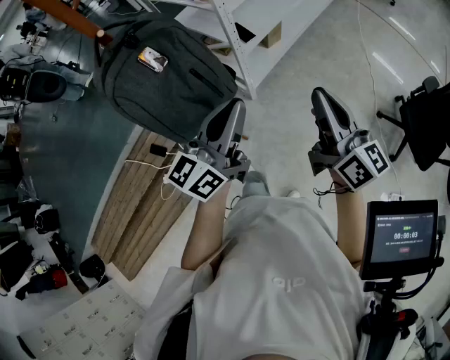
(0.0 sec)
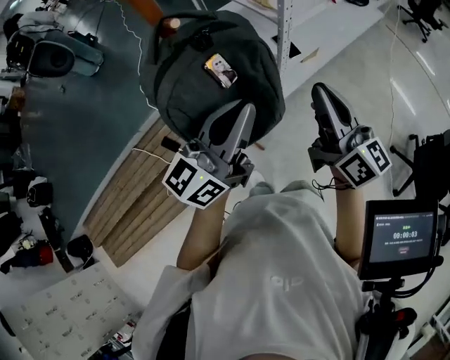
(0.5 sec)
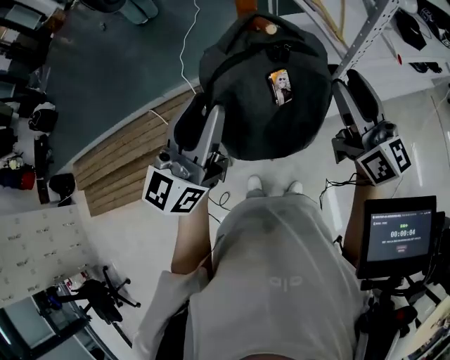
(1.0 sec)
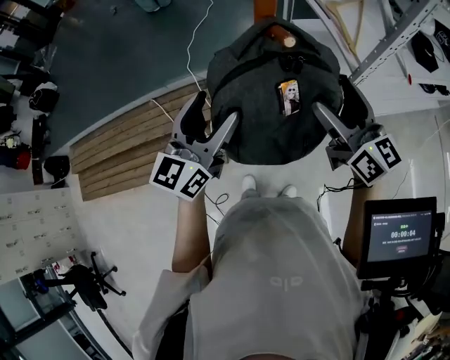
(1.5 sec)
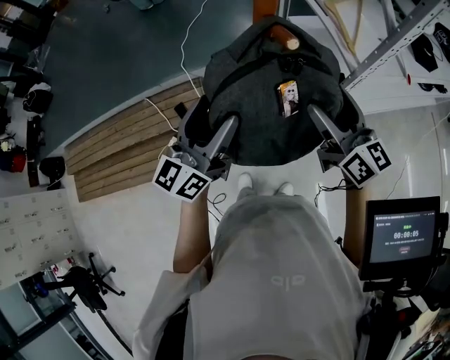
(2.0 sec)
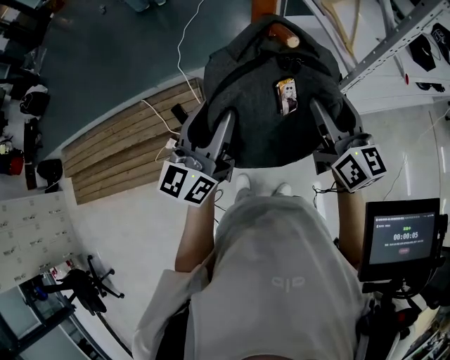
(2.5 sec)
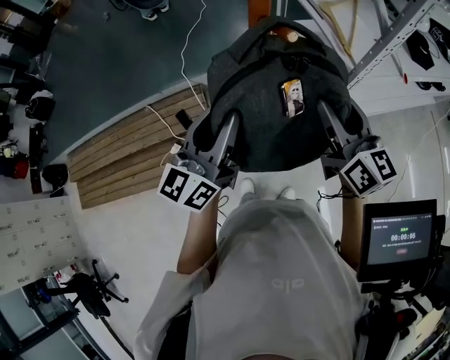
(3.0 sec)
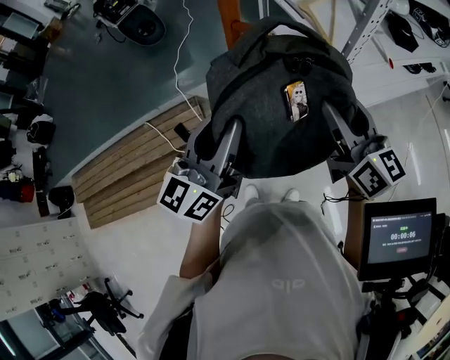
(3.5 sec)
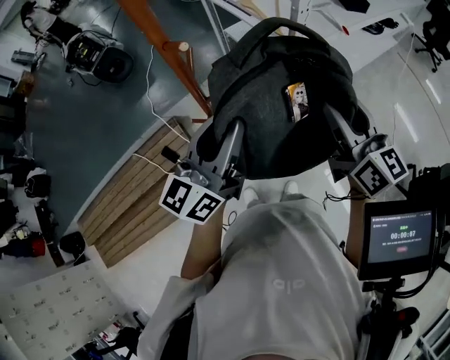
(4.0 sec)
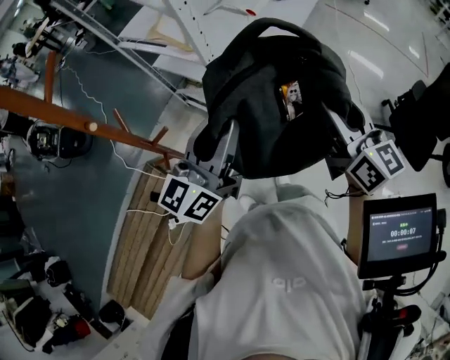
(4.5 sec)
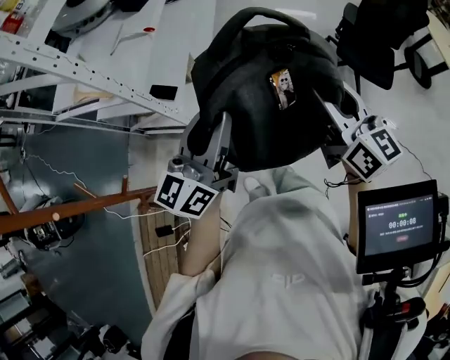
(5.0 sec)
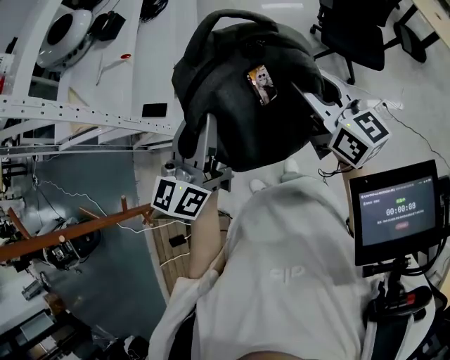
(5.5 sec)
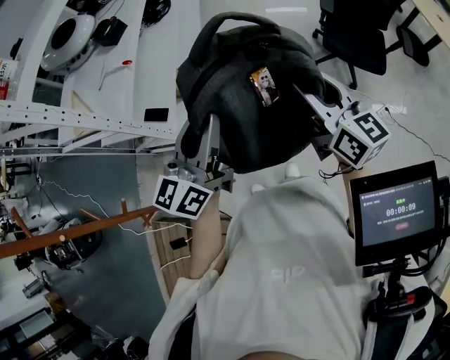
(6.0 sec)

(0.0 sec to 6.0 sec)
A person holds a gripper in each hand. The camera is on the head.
0.0 sec - 2.0 sec: The right gripper changes place by roughly 20 cm, swivels approximately 30 degrees, and opens; the left gripper changes place by about 30 cm, swivels about 30 degrees, and opens up.
2.0 sec - 4.0 sec: The right gripper heads to the right, covering some 10 cm, rotates some 20 degrees, and closes, while the left gripper travels to the right and forward by some 15 cm, and closes up.
4.0 sec - 6.0 sec: The left gripper reaches roughly 15 cm to the right, then returns, while the right gripper moves about 15 cm to the right and comes back.

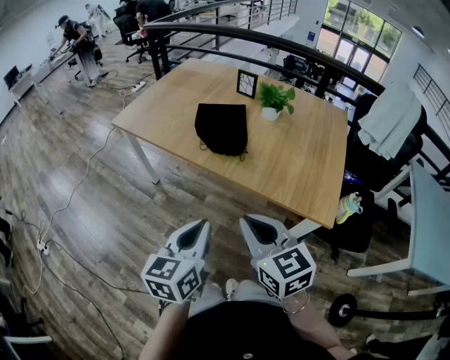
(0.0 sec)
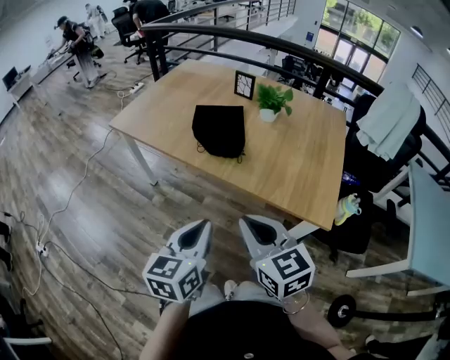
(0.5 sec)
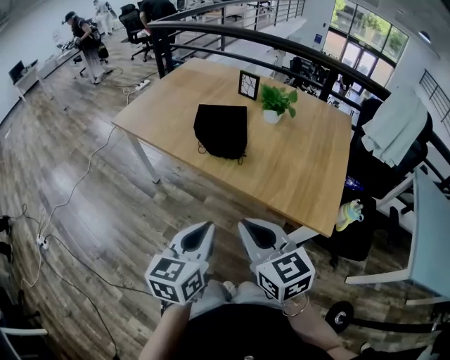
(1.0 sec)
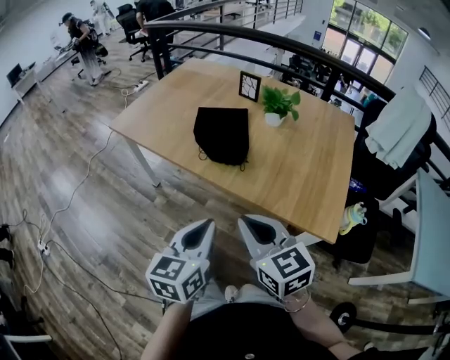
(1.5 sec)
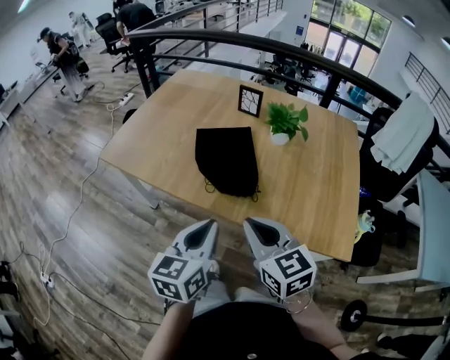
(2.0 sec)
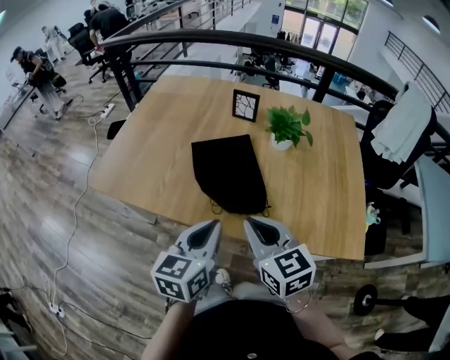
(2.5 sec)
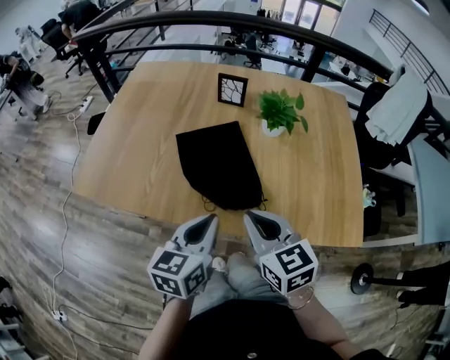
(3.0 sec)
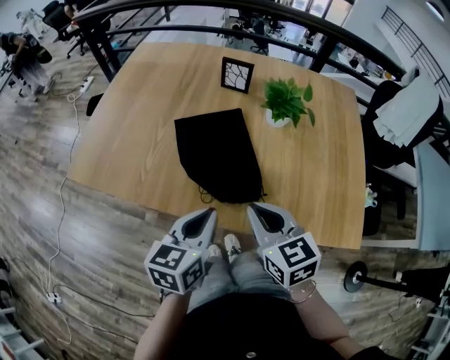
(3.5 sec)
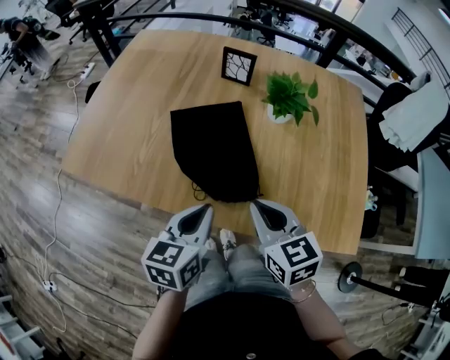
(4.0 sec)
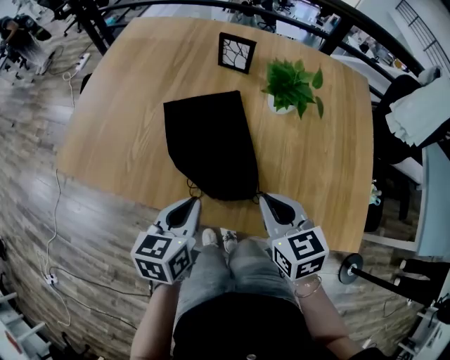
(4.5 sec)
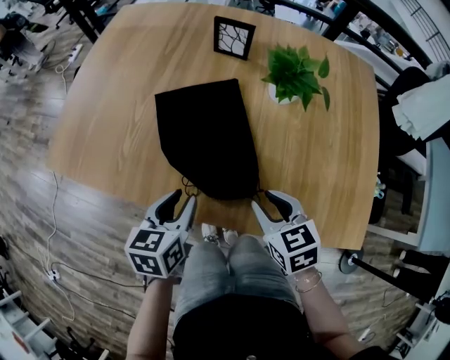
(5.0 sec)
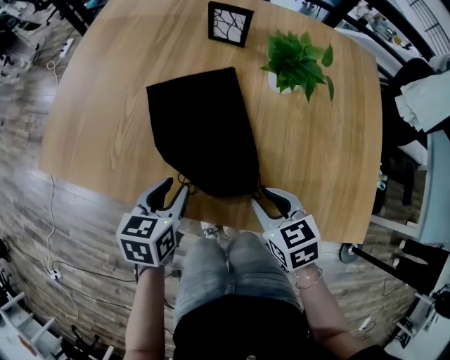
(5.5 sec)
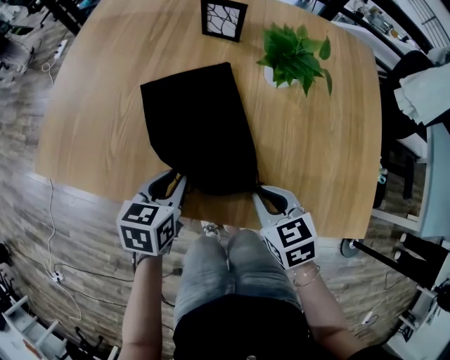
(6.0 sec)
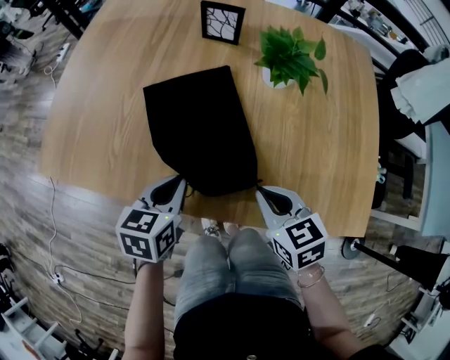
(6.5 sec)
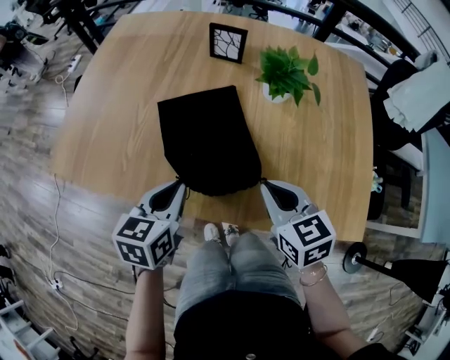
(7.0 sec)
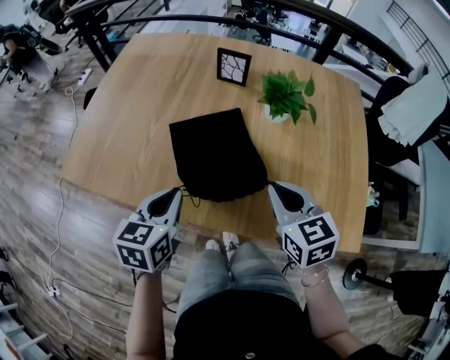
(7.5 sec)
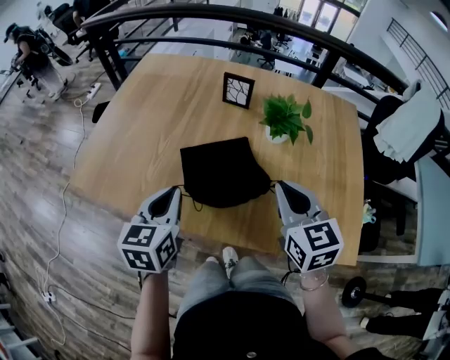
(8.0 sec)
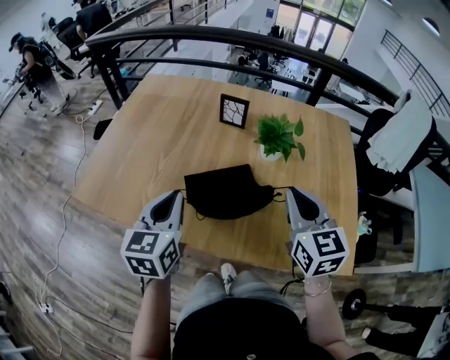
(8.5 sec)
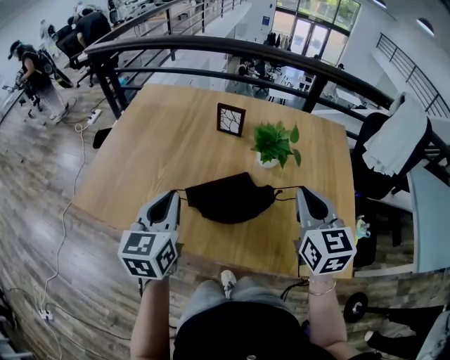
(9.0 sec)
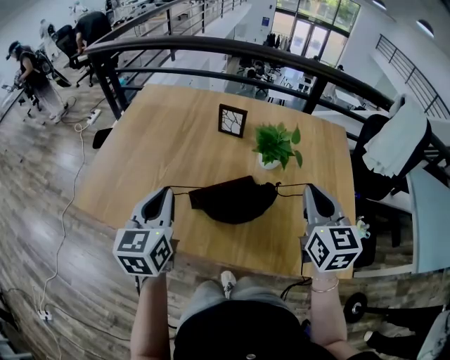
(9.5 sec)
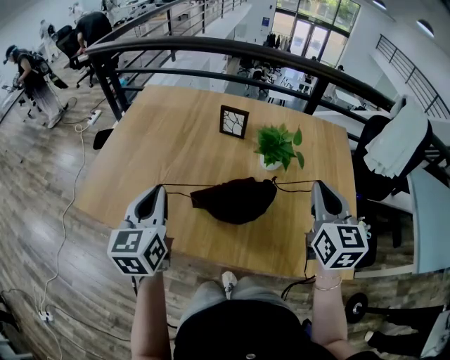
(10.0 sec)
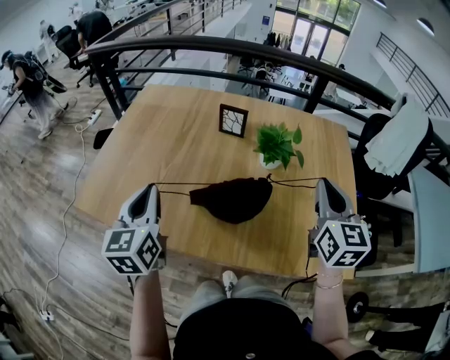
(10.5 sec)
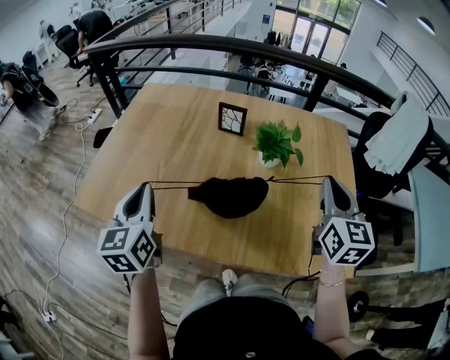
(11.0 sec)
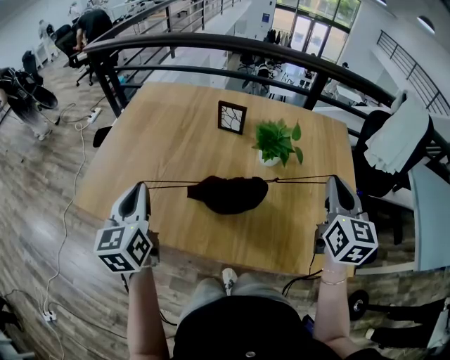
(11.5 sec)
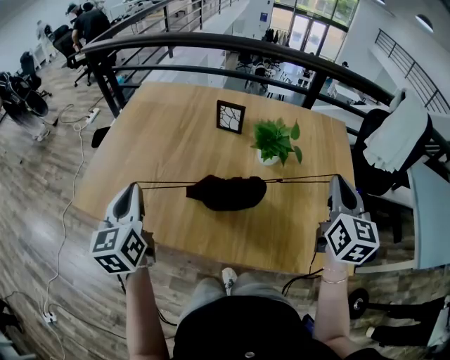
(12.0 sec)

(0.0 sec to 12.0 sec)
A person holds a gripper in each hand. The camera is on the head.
0.0 sec - 2.0 sec: Both grippers travel together forward, some 20 cm.
2.0 sec - 4.0 sec: The two grippers go approximately 15 cm forward and downward.
4.0 sec - 6.0 sec: The left gripper goes some 15 cm downward and forward, and opens; the right gripper goes approximately 15 cm downward, and opens, then closes again.
6.0 sec - 8.0 sec: Both grippers move upward, about 20 cm. The left gripper swivels approximately 20 degrees, and closes its fingers, while the right gripper changes its angle by approximately 30 degrees.
8.0 sec - 10.0 sec: The left gripper is displaced upward by approximately 10 cm. The right gripper goes approximately 10 cm to the right and upward.
10.0 sec - 12.0 sec: The left gripper moves to the left, some 5 cm. The right gripper goes about 5 cm to the right.

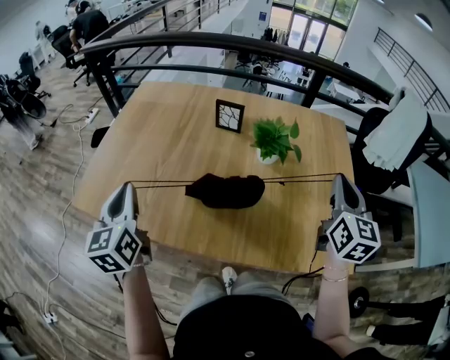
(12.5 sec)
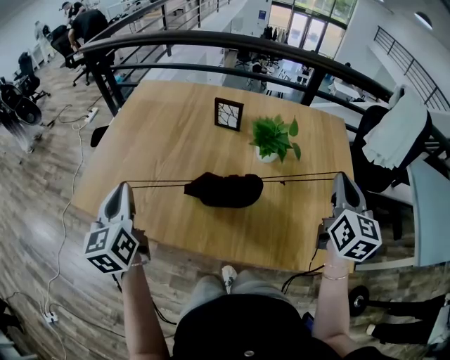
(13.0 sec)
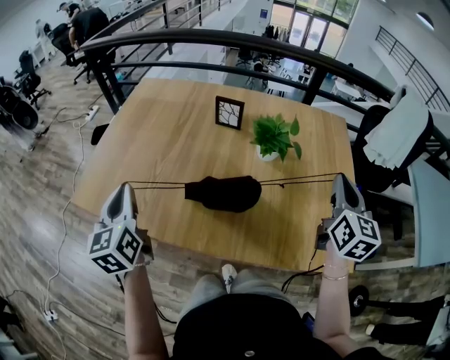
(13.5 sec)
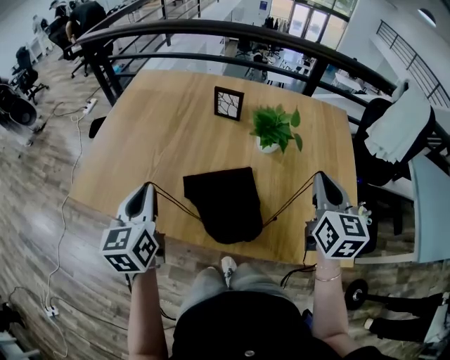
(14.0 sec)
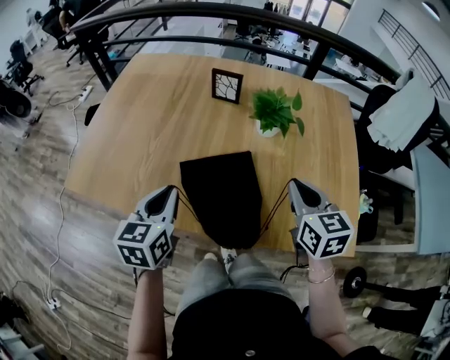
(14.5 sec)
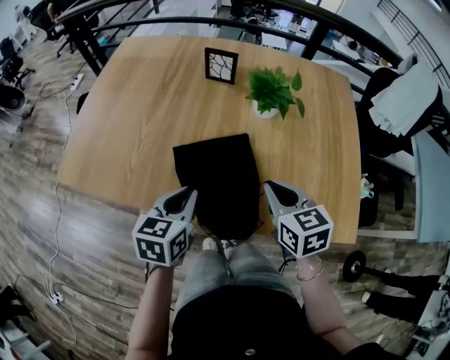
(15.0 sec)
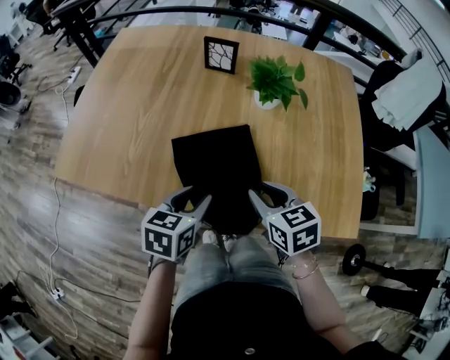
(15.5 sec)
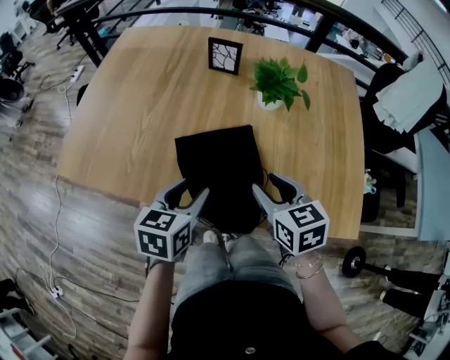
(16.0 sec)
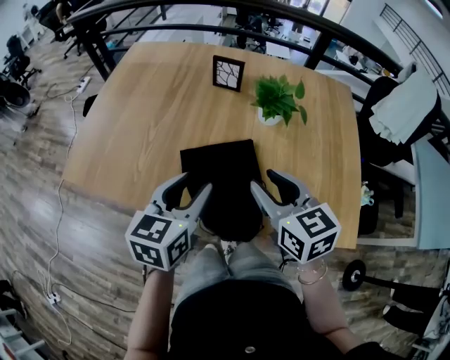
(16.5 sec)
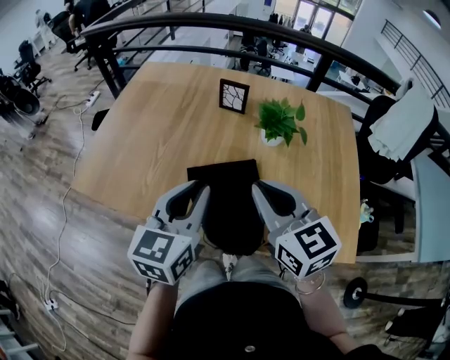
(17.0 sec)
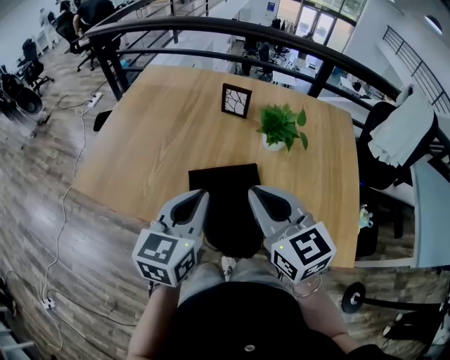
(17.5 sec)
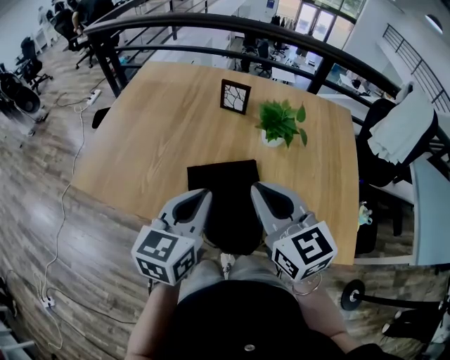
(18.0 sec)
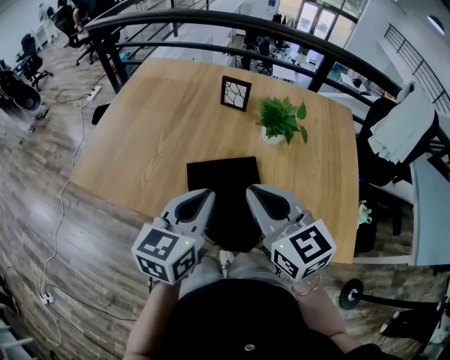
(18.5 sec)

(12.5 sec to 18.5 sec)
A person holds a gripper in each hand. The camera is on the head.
12.5 sec - 14.5 sec: The right gripper travels downward and to the left by about 15 cm, and swivels approximately 30 degrees. The left gripper moves to the right and downward, approximately 15 cm, and turns by approximately 30 degrees.
14.5 sec - 16.5 sec: The right gripper shifts about 10 cm to the left, goes downward and returns, approximately 10 cm each way, and opens its fingers; the left gripper shifts about 5 cm to the right, travels downward and back again, roughly 10 cm each way, and opens.
16.5 sec - 18.5 sec: The left gripper closes its fingers; the right gripper is displaced upward by roughly 5 cm, and closes its fingers.

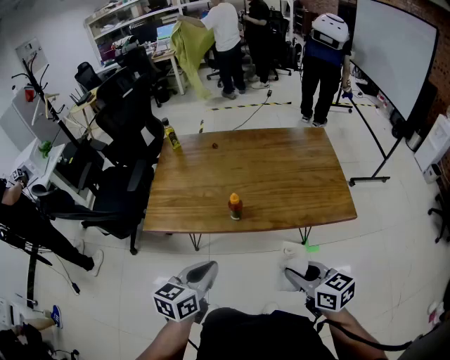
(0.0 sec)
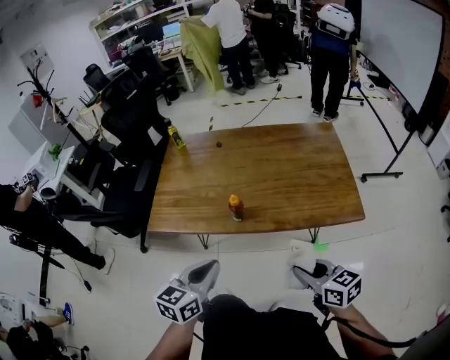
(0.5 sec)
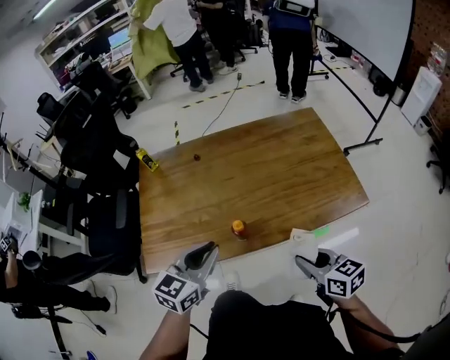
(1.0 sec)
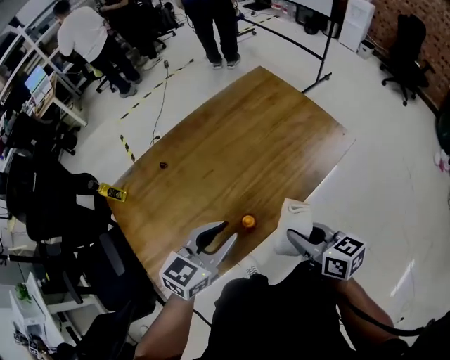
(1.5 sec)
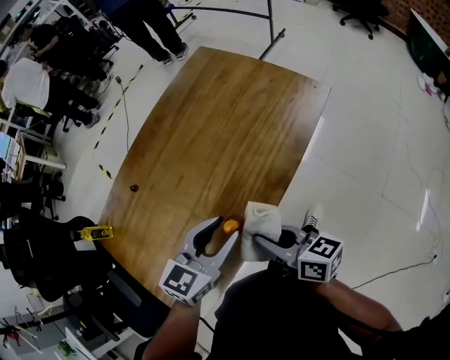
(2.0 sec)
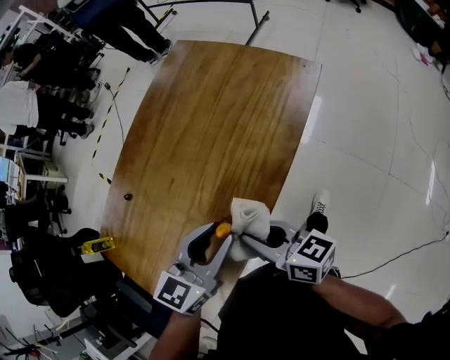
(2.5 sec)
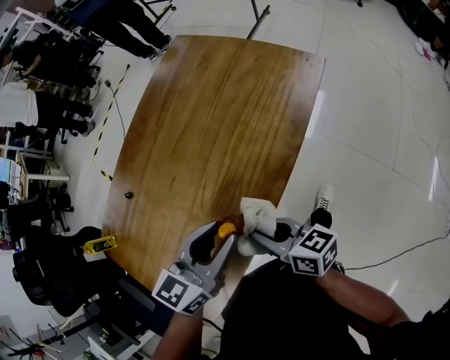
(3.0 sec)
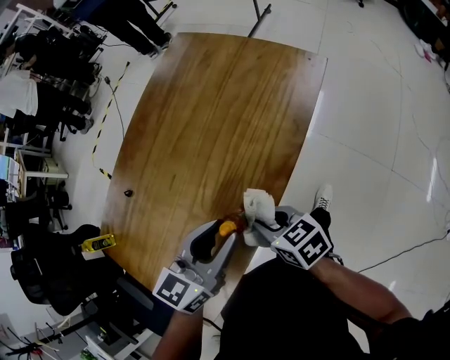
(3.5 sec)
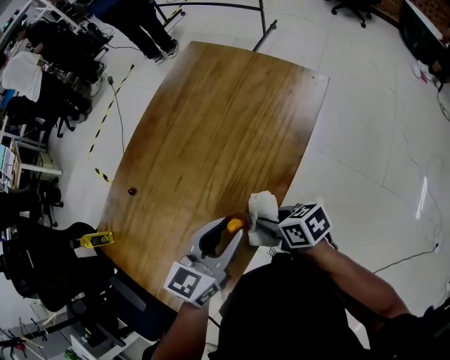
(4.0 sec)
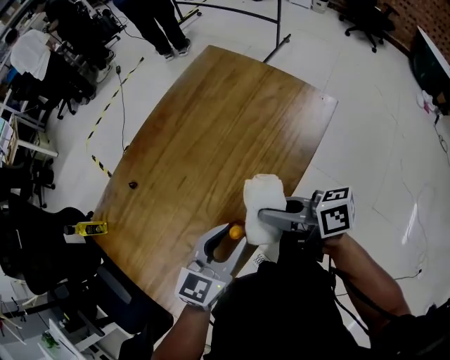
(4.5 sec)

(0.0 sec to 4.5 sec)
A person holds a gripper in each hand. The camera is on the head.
0.0 sec - 2.0 sec: The left gripper shifts by roughly 25 cm, swivels roughly 60 degrees, and opens up, while the right gripper ends up about 25 cm from where it was, and turns by approximately 60 degrees.
2.0 sec - 4.5 sec: The right gripper moves forward, some 5 cm, and goes downward and returns, some 10 cm each way.
